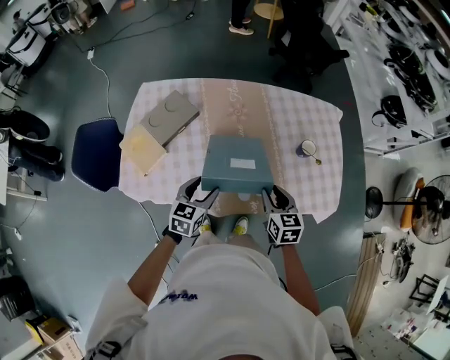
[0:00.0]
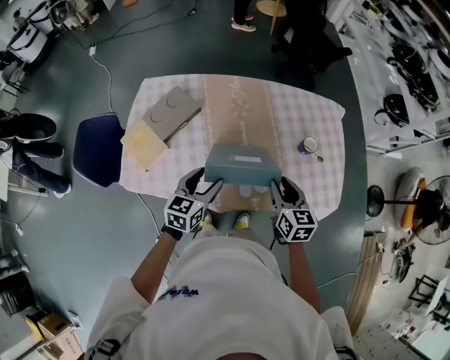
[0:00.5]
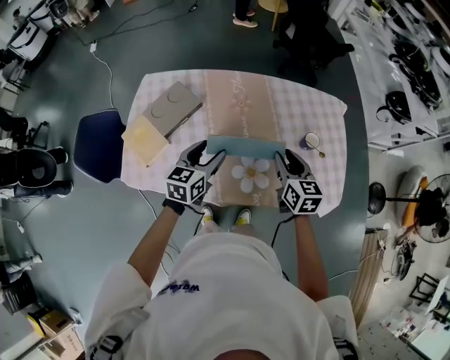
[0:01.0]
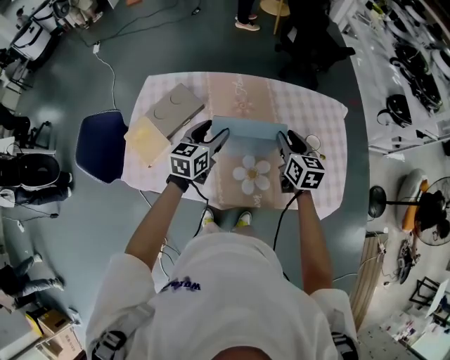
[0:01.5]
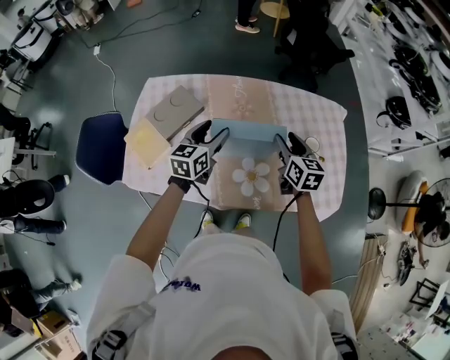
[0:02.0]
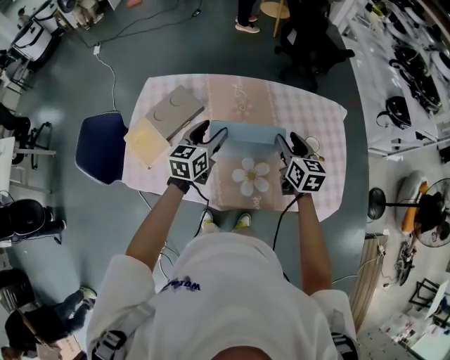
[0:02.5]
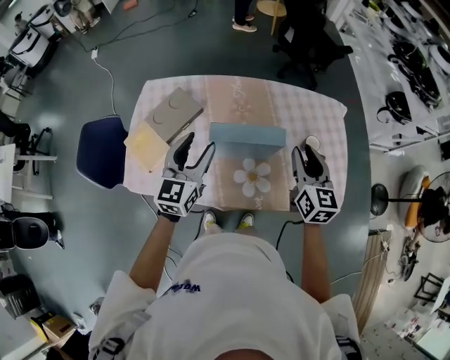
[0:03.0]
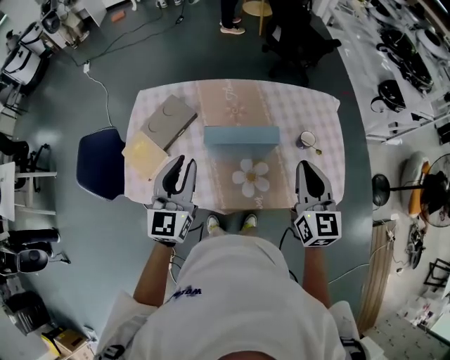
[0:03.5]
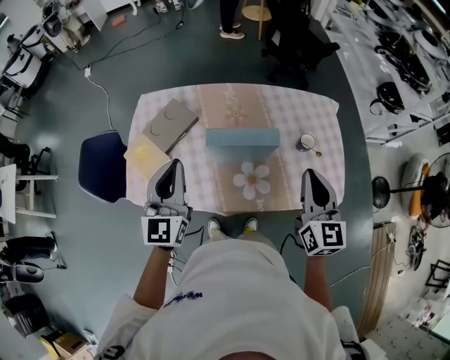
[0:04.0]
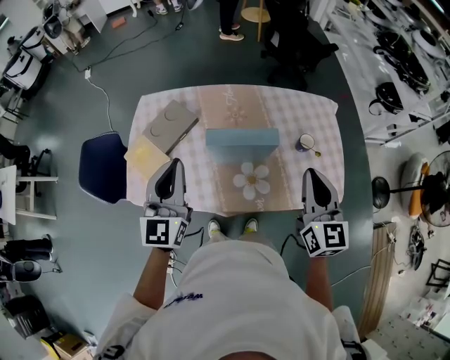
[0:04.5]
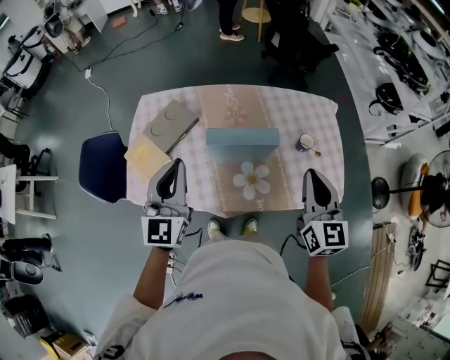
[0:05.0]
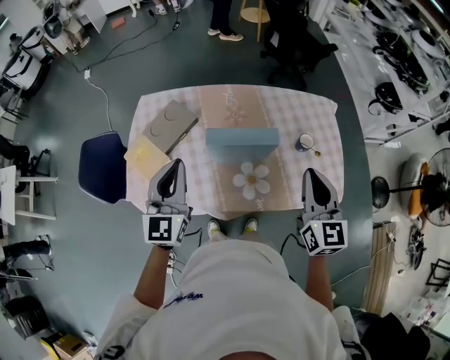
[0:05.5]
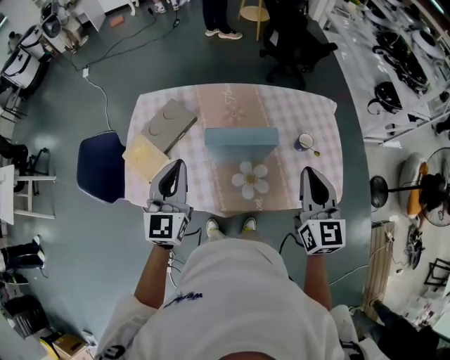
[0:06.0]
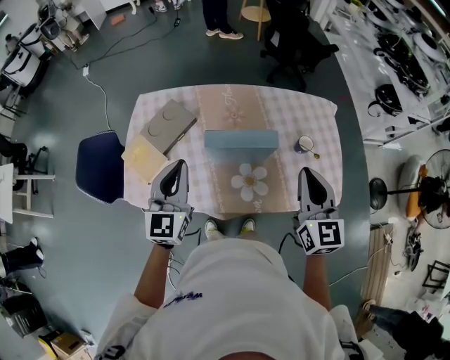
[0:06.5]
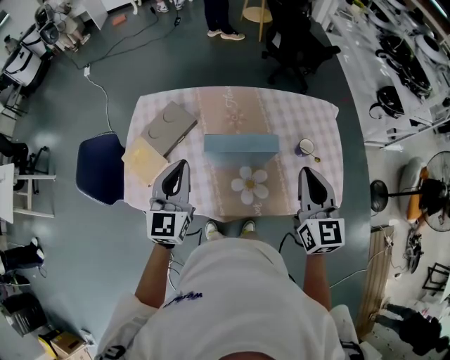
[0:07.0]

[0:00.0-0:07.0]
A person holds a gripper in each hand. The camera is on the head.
0:00.0 to 0:02.0: The two grippers go some 15 cm forward and upward.
0:02.0 to 0:03.5: The left gripper goes approximately 15 cm backward and upward, and rotates roughly 30 degrees. Meanwhile the right gripper travels upward and backward by about 15 cm, and swivels some 20 degrees.
0:03.5 to 0:05.0: The grippers stay close to where they were, moving slightly.
0:05.0 to 0:07.0: The left gripper moves roughly 5 cm.

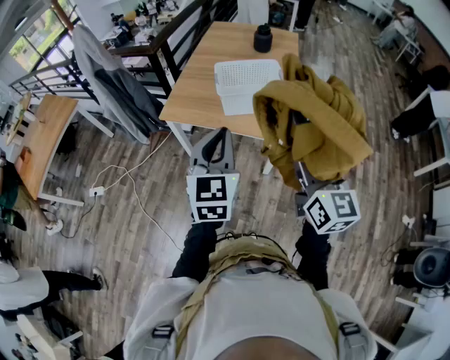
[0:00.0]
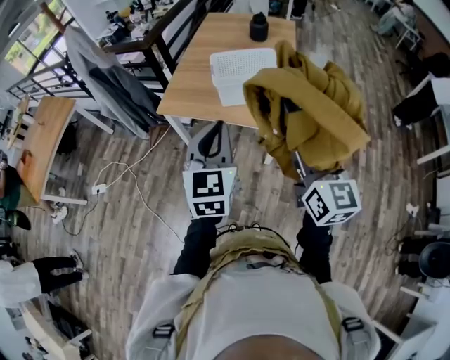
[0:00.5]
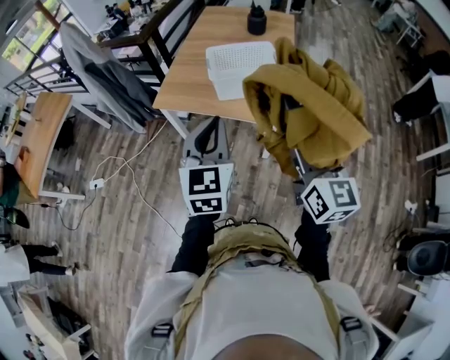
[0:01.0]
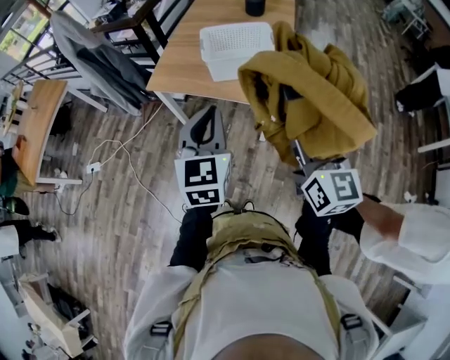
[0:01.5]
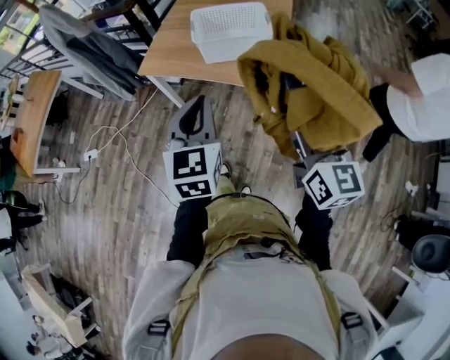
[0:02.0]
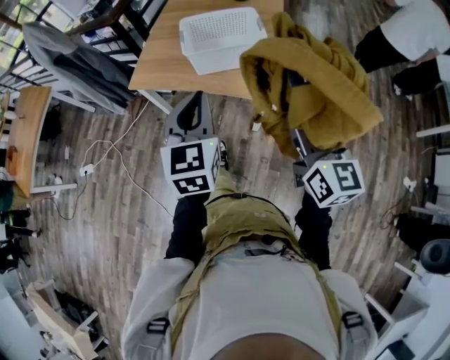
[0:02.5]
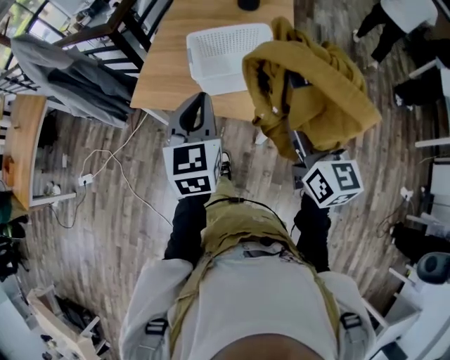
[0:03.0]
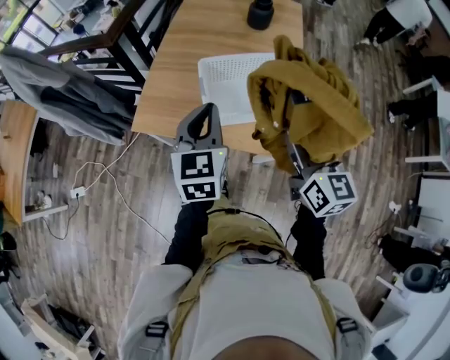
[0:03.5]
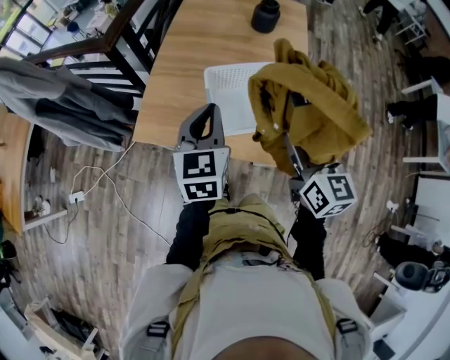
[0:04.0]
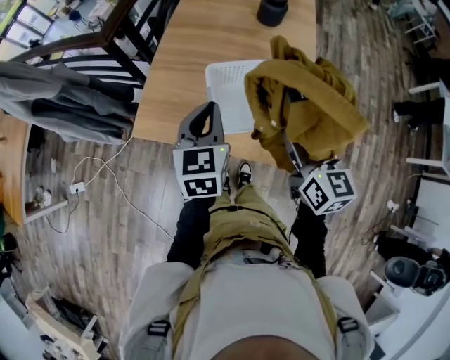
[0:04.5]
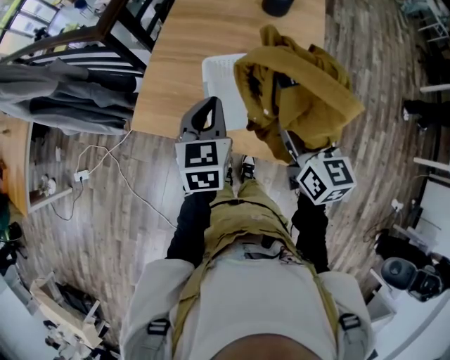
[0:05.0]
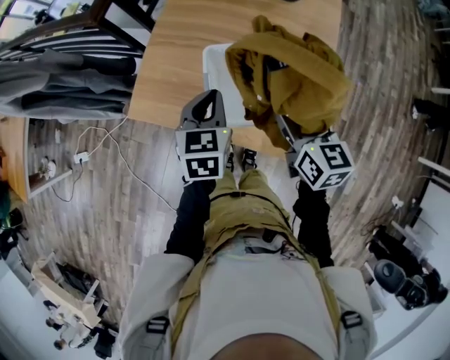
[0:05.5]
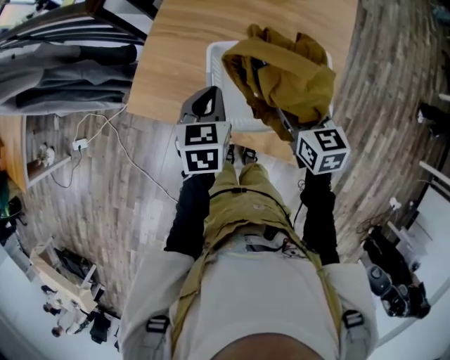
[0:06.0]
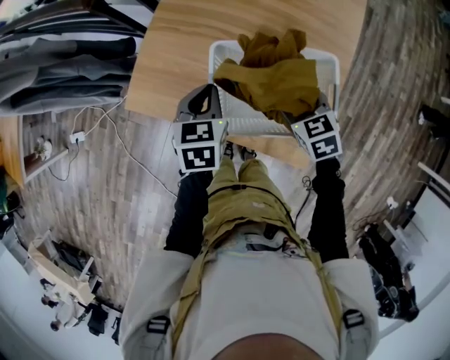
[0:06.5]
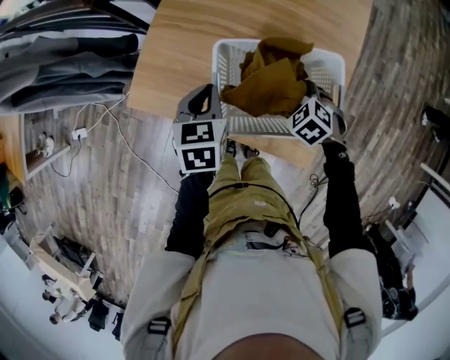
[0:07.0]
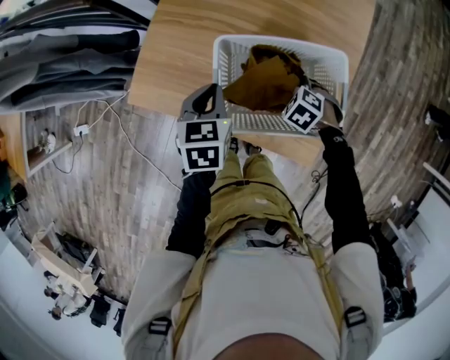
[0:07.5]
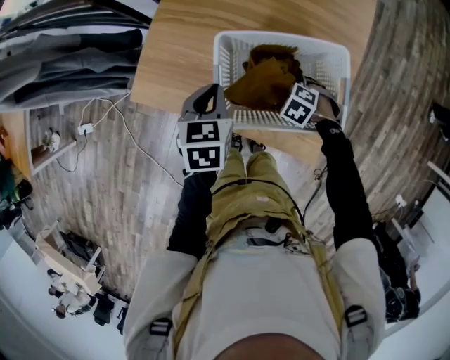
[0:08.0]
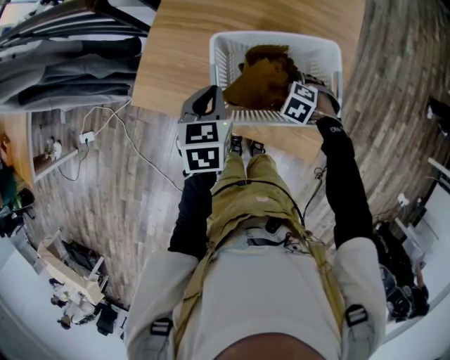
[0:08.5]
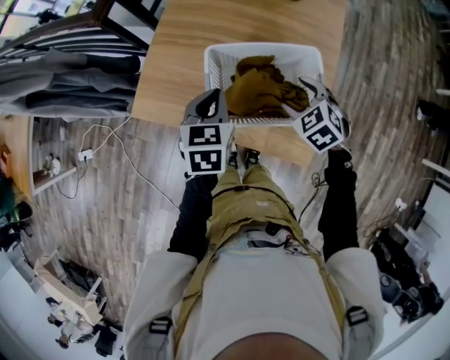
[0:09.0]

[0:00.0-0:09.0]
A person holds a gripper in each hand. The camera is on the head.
0:00.0 to 0:02.0: The left gripper goes about 10 cm downward and to the right, while the right gripper goes about 10 cm to the right and downward.
0:02.0 to 0:04.5: Both grippers are carried forward, some 40 cm.
0:04.5 to 0:07.0: The left gripper shifts approximately 20 cm downward and forward, and turns by some 30 degrees. Meanwhile the right gripper moves downward and forward, some 35 cm, and tips its fingers downward by approximately 50 degrees.
0:07.0 to 0:09.0: The right gripper goes about 10 cm upward. The left gripper shifts some 5 cm upward.

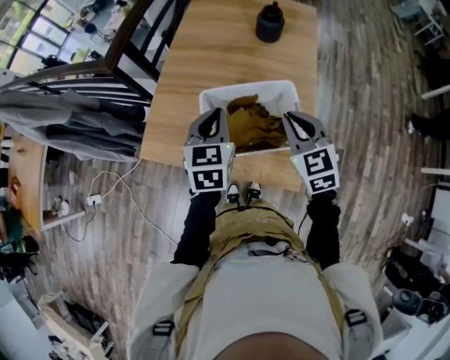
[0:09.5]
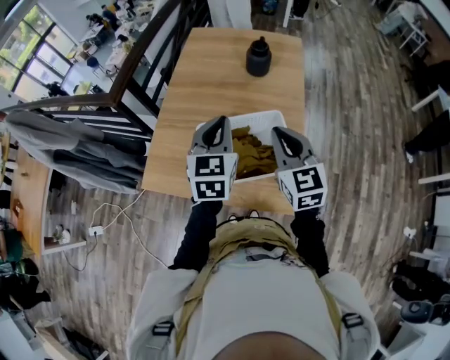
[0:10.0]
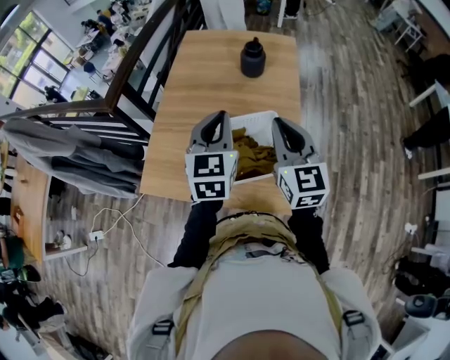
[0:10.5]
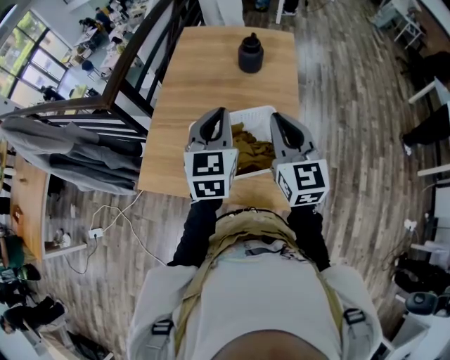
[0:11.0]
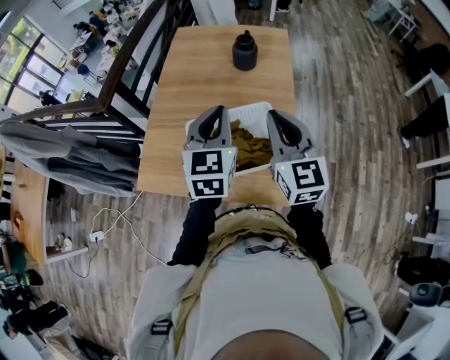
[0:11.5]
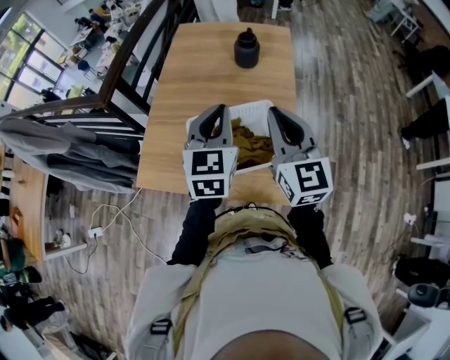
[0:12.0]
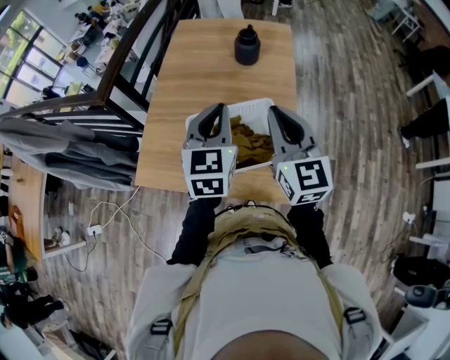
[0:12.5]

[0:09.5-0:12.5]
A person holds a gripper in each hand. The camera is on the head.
0:09.5 to 0:11.0: The right gripper moves upward, about 10 cm, and swivels about 30 degrees; the left gripper is displaced upward and to the right by about 10 cm.
0:11.0 to 0:12.5: The grippers move only a little.

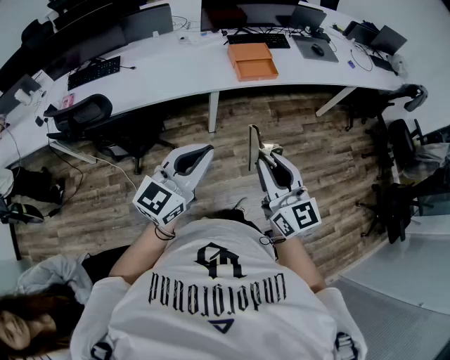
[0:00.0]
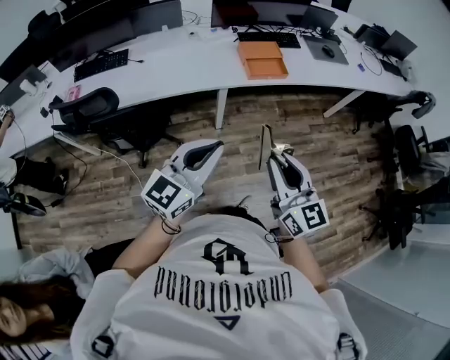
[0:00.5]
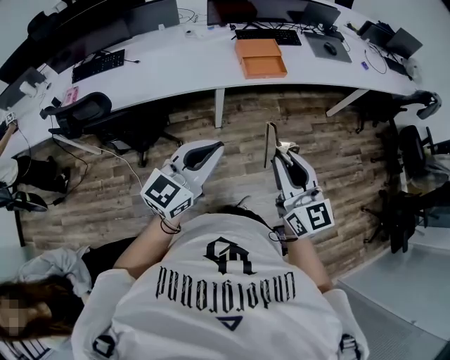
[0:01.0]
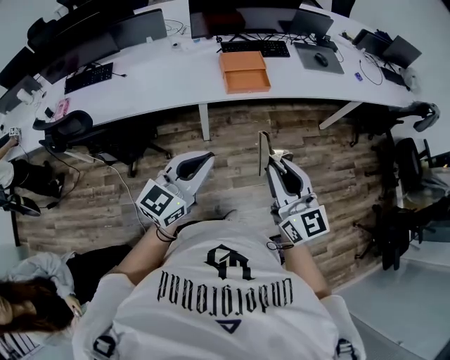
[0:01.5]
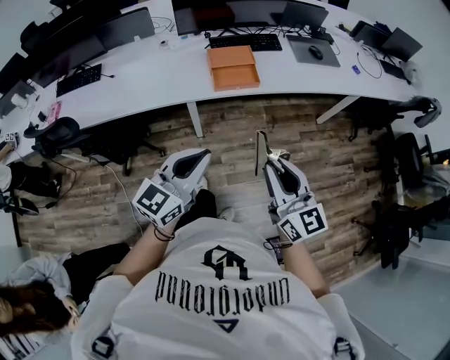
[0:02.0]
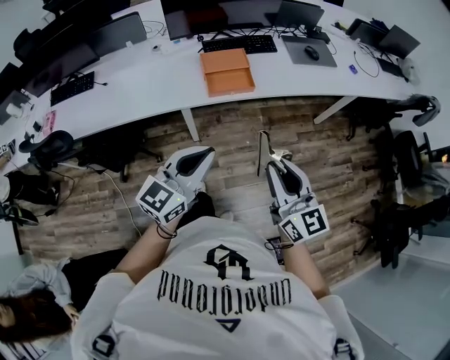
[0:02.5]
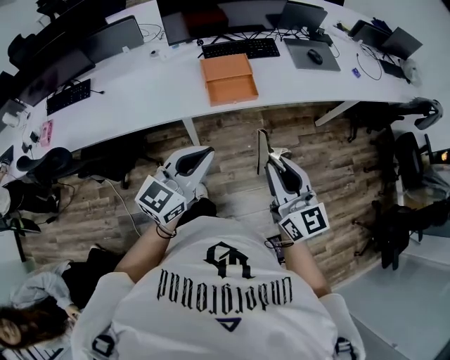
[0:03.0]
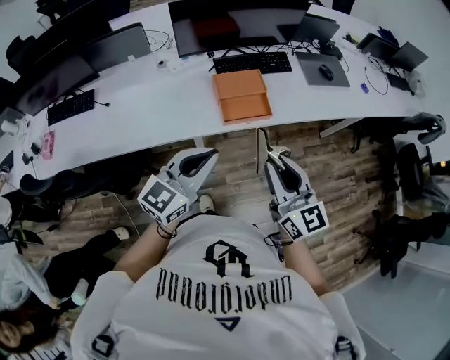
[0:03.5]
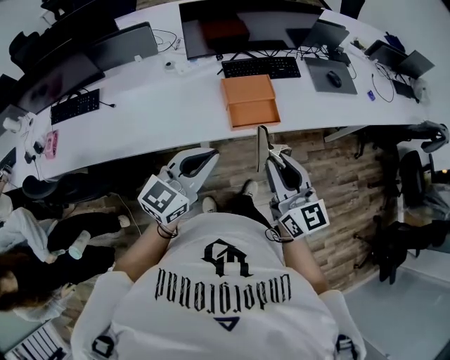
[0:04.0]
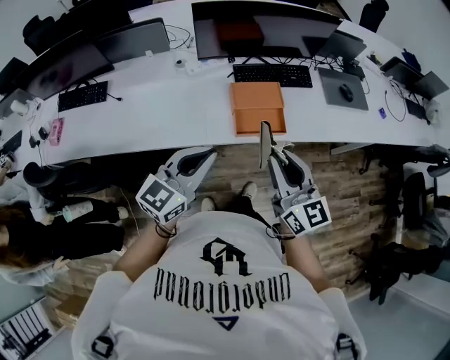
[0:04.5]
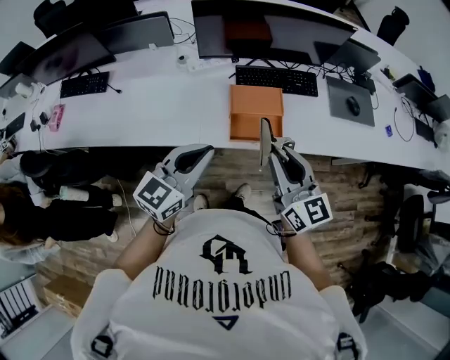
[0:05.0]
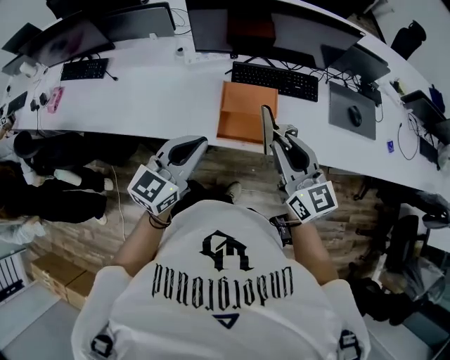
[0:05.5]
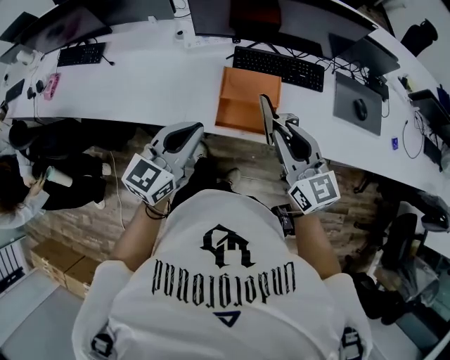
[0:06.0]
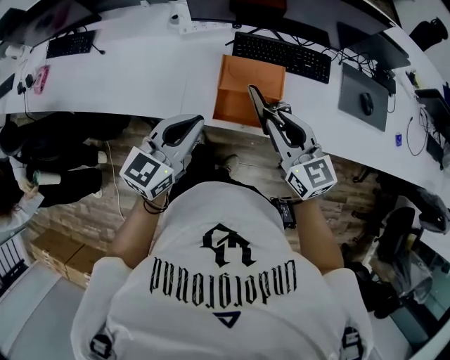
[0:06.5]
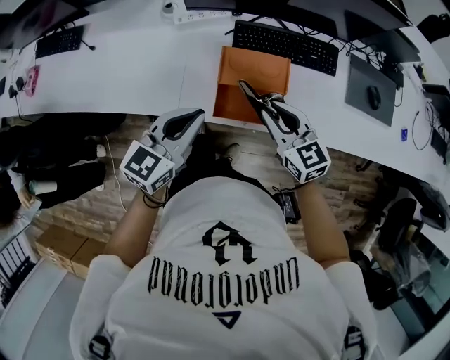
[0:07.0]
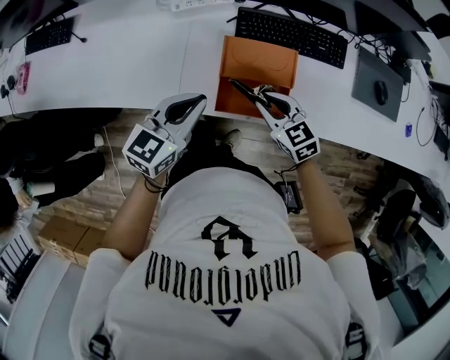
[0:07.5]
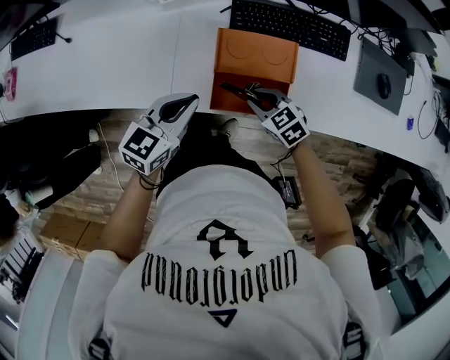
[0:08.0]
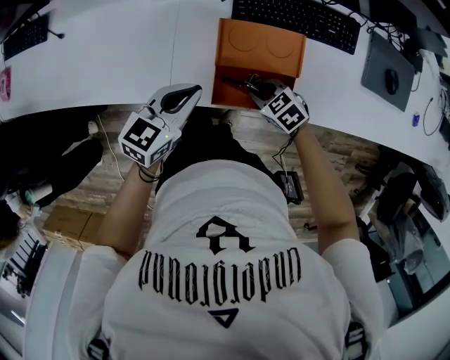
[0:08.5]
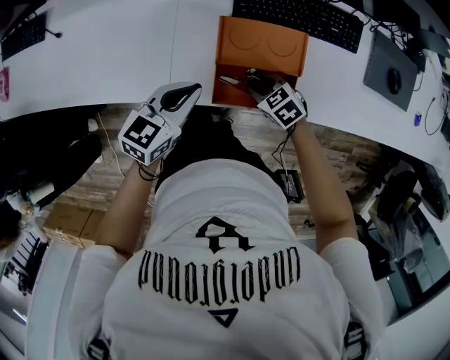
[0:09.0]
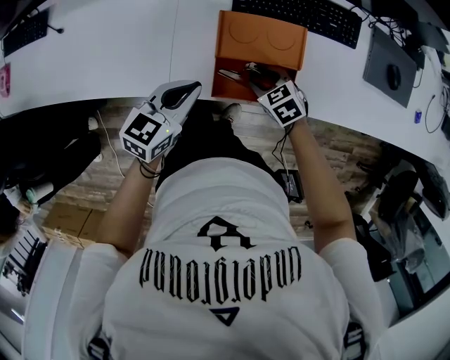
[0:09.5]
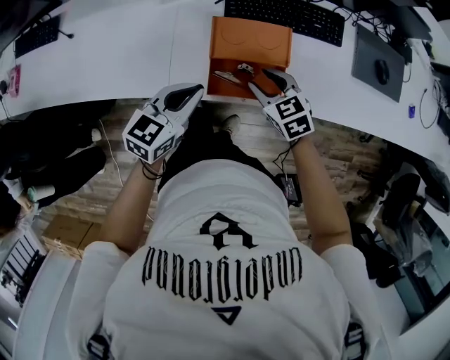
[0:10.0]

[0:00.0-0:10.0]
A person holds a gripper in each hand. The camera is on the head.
0:00.0 to 0:02.0: Both grippers travel together to the right and forward, approximately 25 cm.
0:02.0 to 0:04.0: Both grippers travel together forward and to the left, about 25 cm.
0:04.0 to 0:06.0: Both grippers move forward and to the right, some 20 cm. The left gripper turns by about 20 degrees. The right gripper turns by about 20 degrees.
0:06.0 to 0:08.0: The left gripper is displaced downward and forward by roughly 20 cm, and swivels about 20 degrees. Meanwhile the right gripper goes approximately 30 cm downward, and tips its fingers downward by roughly 40 degrees.
0:08.0 to 0:10.0: The right gripper travels upward by approximately 5 cm.
